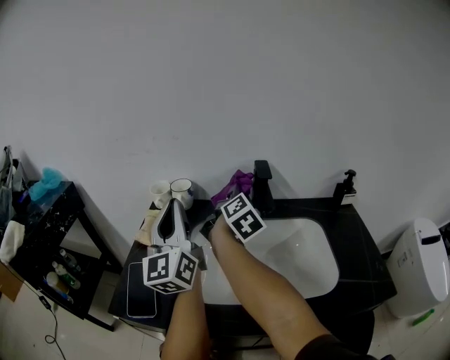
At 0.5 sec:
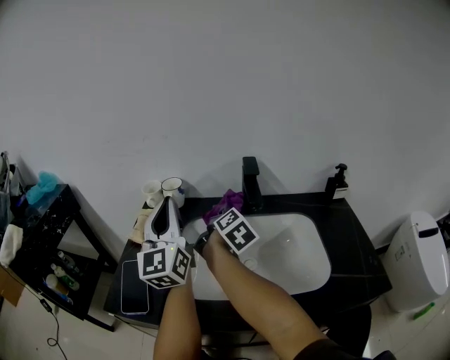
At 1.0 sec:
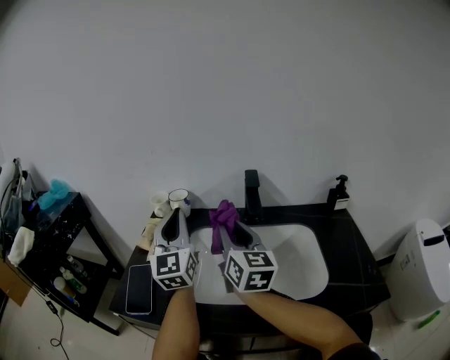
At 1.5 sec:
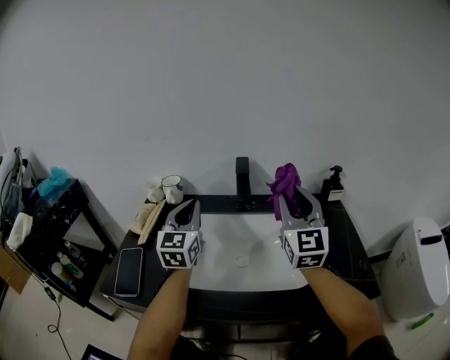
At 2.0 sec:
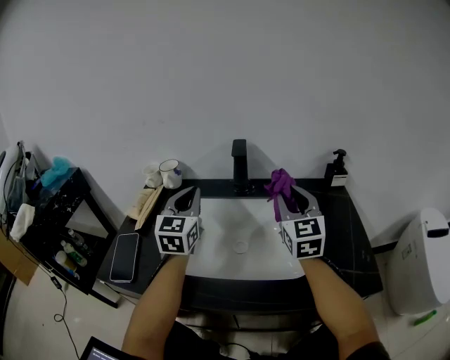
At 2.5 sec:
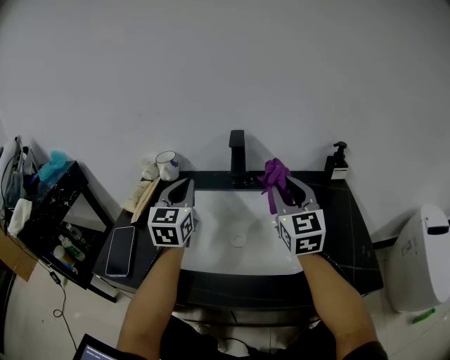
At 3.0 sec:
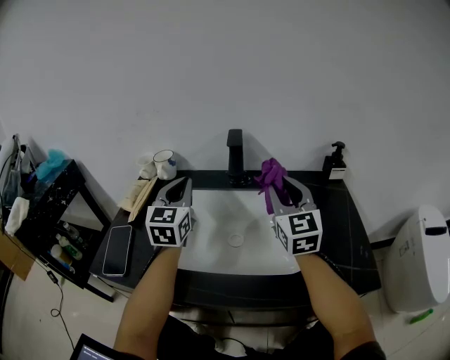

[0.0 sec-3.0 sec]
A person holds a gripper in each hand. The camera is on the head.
0.0 sec to 1.5 sec: The left gripper moves to the right and downward, some 10 cm, and changes its angle by roughly 30 degrees. Meanwhile the right gripper shifts about 20 cm to the right, backward and upward, and rolls counterclockwise, seen from behind, by some 60 degrees.
1.5 sec to 3.0 sec: The right gripper heads downward, covering some 5 cm.

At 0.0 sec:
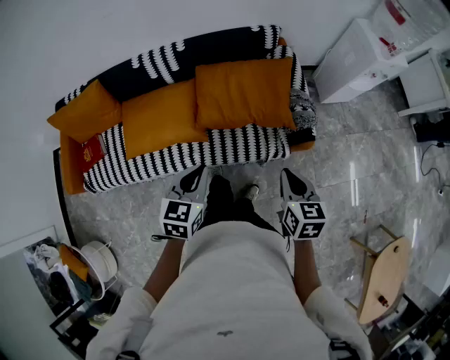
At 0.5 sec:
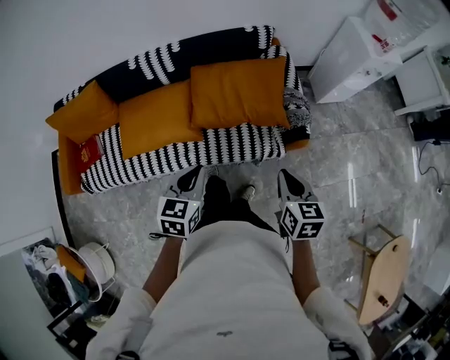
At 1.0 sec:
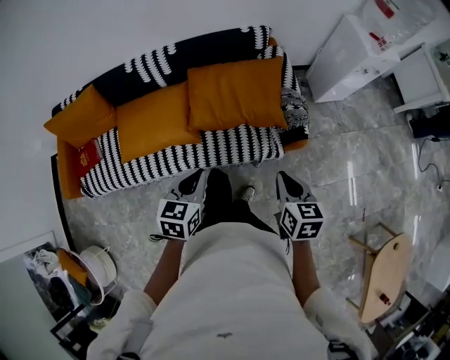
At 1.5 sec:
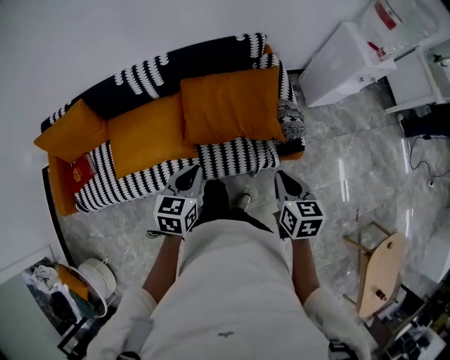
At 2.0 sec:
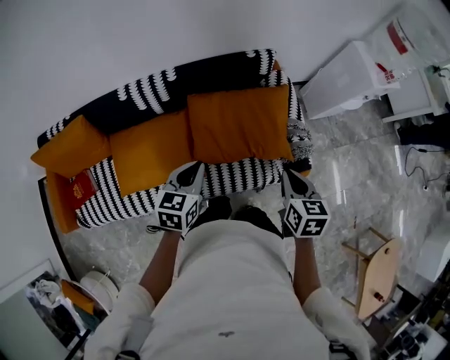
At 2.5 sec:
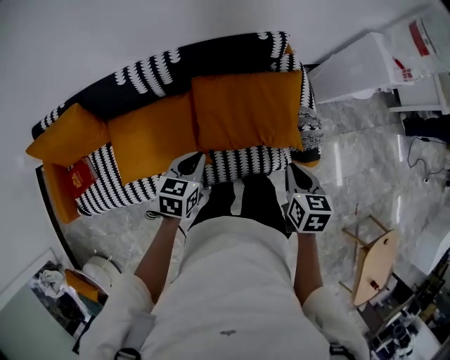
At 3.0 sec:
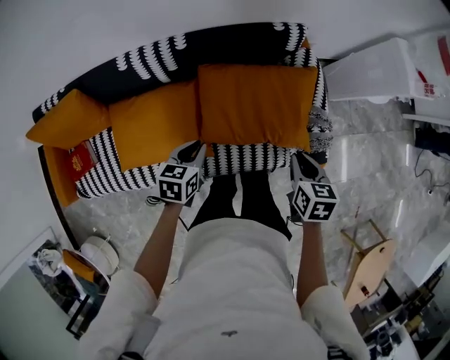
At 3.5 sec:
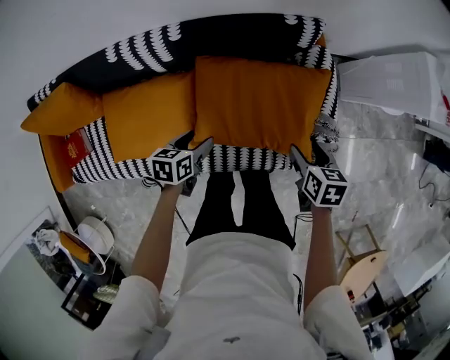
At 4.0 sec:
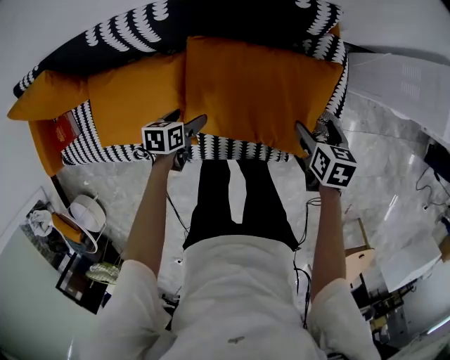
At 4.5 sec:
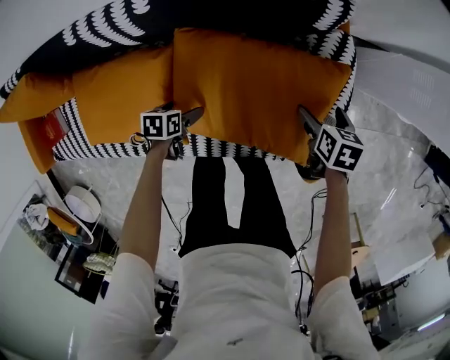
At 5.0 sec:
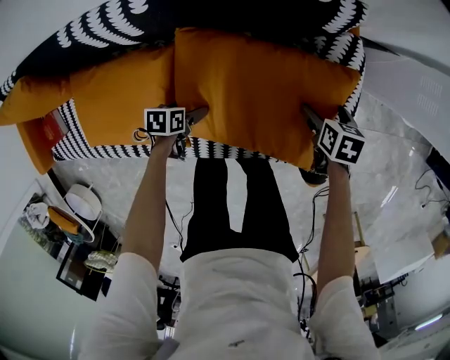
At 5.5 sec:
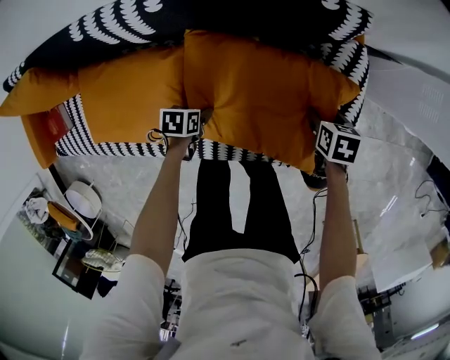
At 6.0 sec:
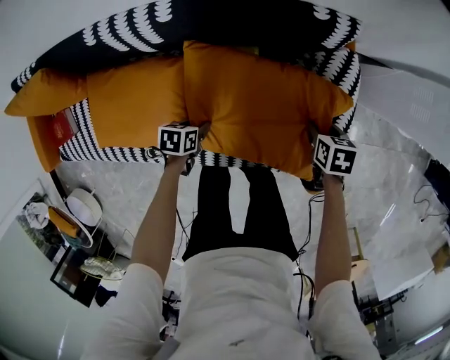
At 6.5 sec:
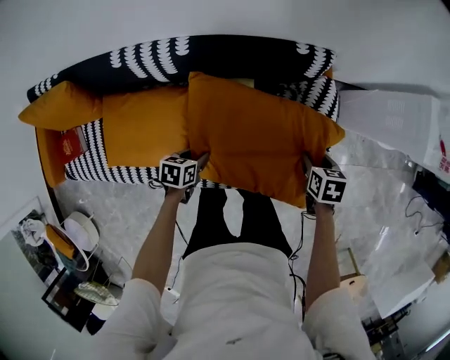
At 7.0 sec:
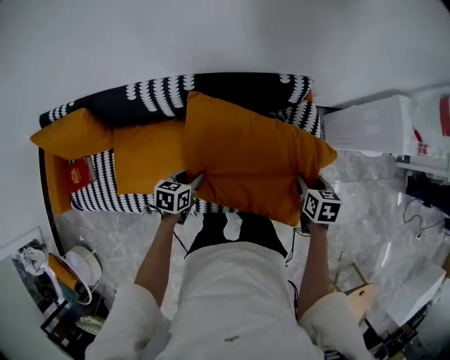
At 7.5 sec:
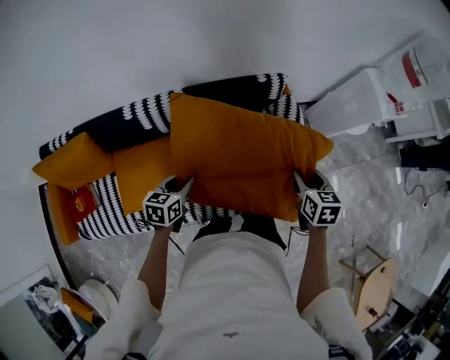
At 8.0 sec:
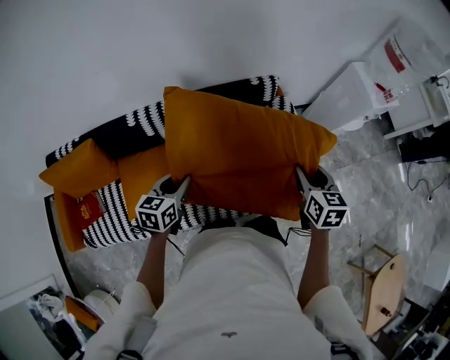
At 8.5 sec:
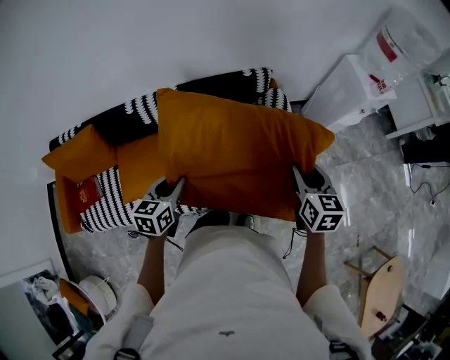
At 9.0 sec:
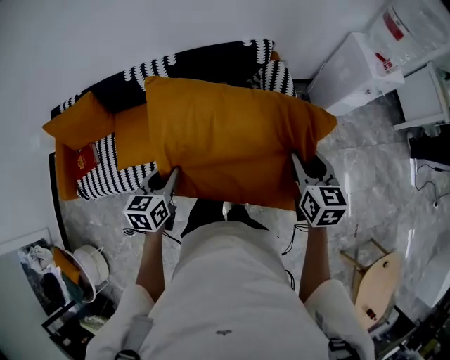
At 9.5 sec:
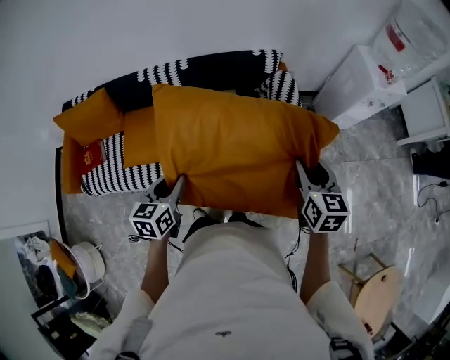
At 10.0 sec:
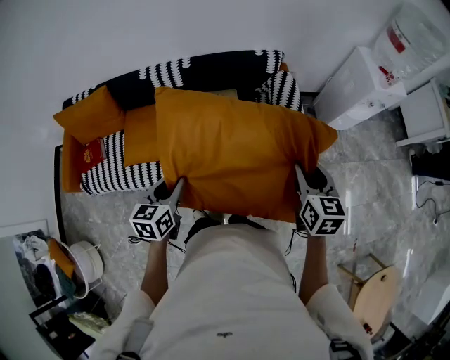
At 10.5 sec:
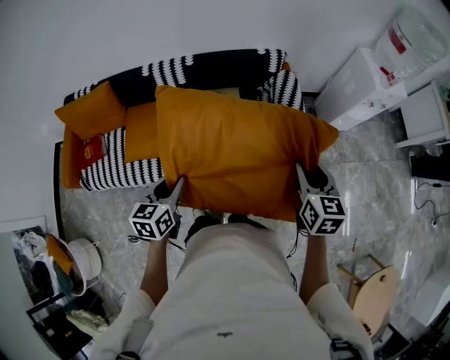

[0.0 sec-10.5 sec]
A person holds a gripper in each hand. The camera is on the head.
0.0 sec to 2.0 sec: The two grippers go some 15 cm forward.
2.0 sec to 4.0 sec: The left gripper goes roughly 30 cm downward, turns by approximately 40 degrees, and opens; the right gripper is displaced downward and forward by about 35 cm, rotates some 20 degrees, and opens its fingers.
4.0 sec to 6.5 sec: The left gripper moves some 10 cm downward and comes back, and closes up. Meanwhile the right gripper reaches about 10 cm downward, then returns, and closes up.
6.5 sec to 8.5 sec: The two grippers go some 30 cm upward and backward. The left gripper swivels roughly 40 degrees; the right gripper tilts its fingers approximately 40 degrees upward.
8.5 sec to 10.5 sec: The left gripper travels backward by about 15 cm. The right gripper goes roughly 10 cm backward.

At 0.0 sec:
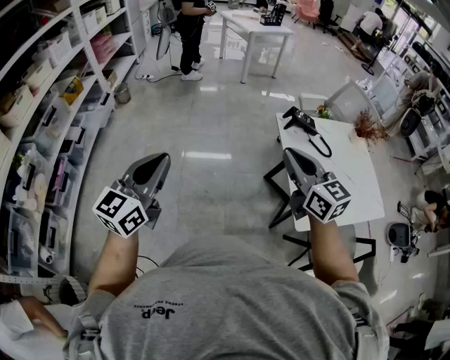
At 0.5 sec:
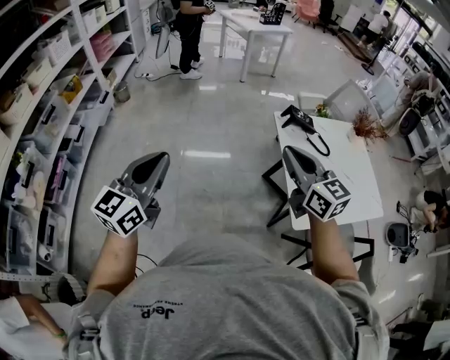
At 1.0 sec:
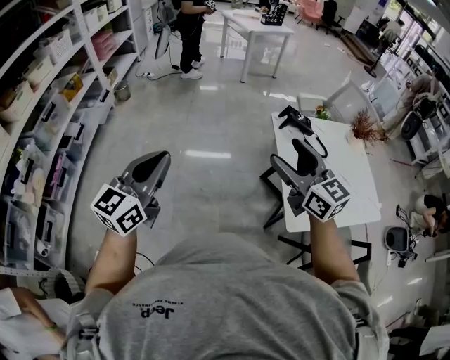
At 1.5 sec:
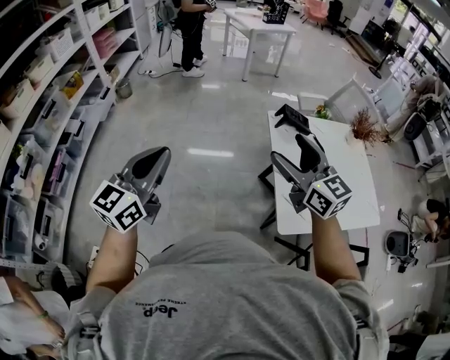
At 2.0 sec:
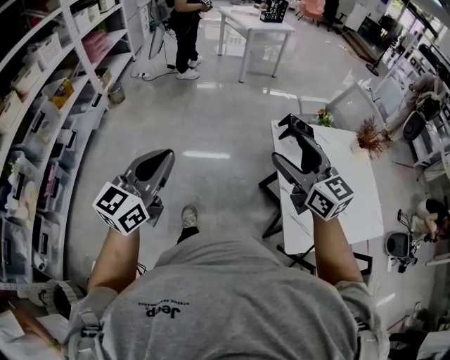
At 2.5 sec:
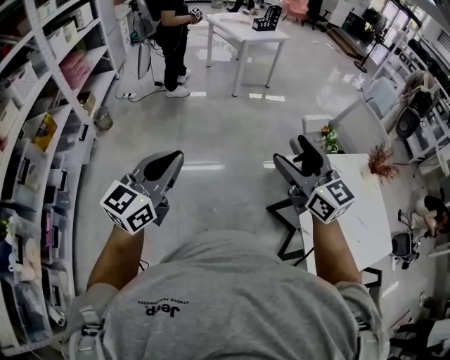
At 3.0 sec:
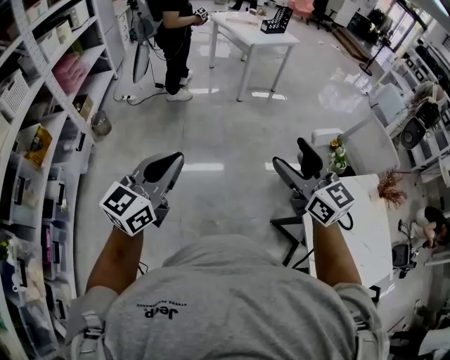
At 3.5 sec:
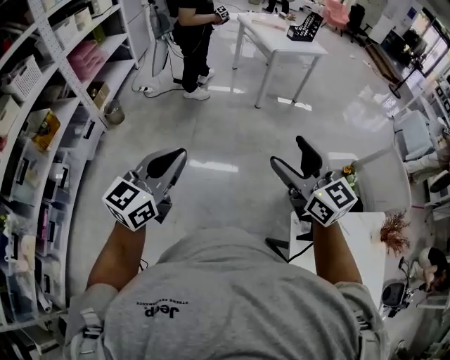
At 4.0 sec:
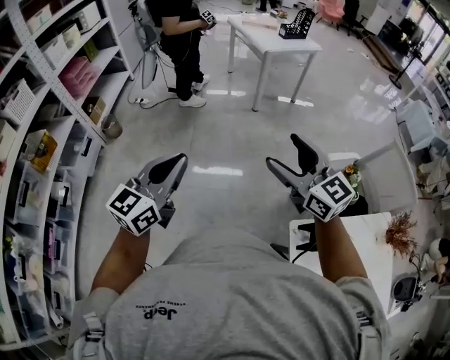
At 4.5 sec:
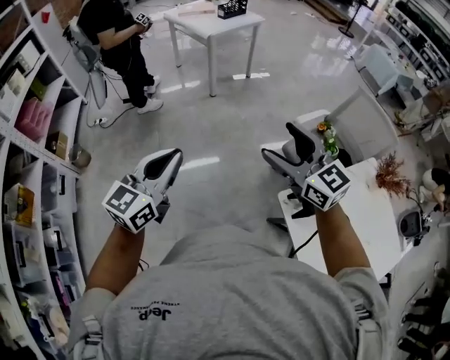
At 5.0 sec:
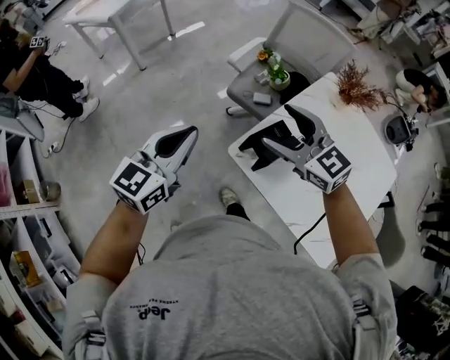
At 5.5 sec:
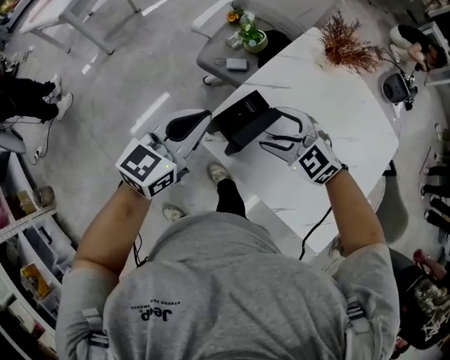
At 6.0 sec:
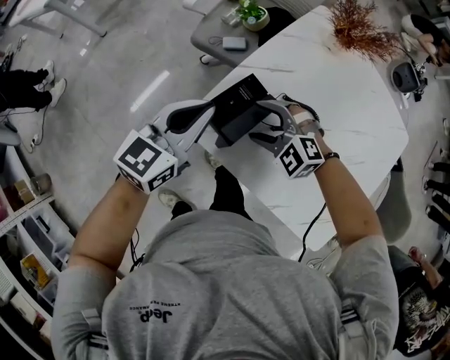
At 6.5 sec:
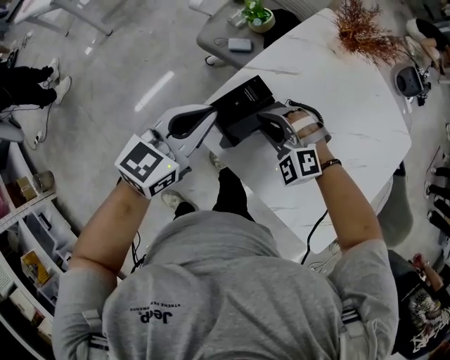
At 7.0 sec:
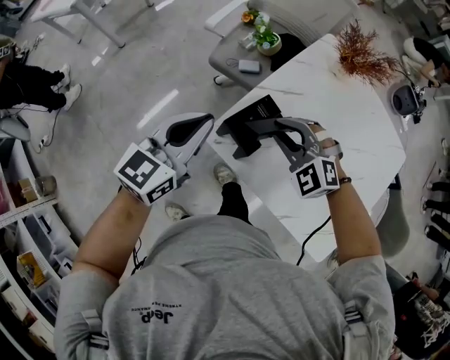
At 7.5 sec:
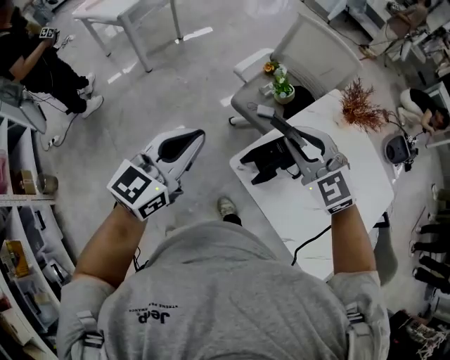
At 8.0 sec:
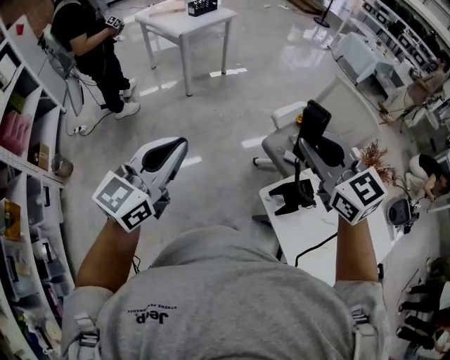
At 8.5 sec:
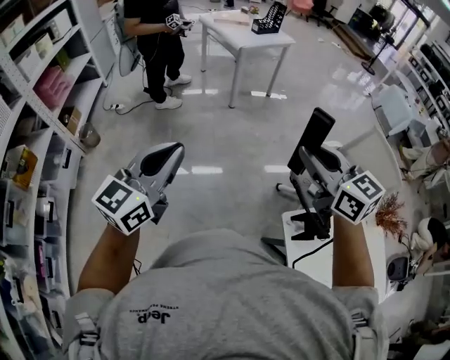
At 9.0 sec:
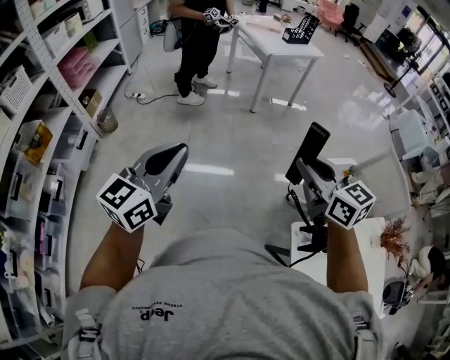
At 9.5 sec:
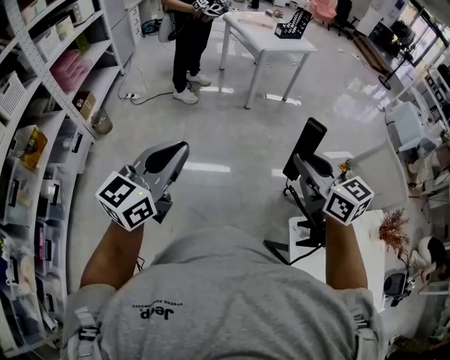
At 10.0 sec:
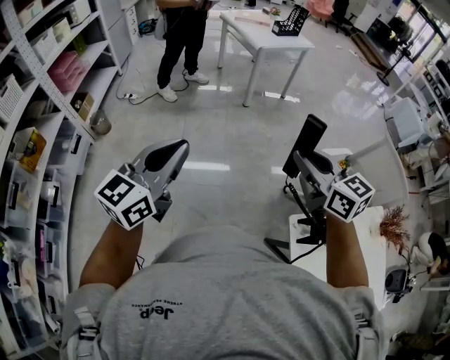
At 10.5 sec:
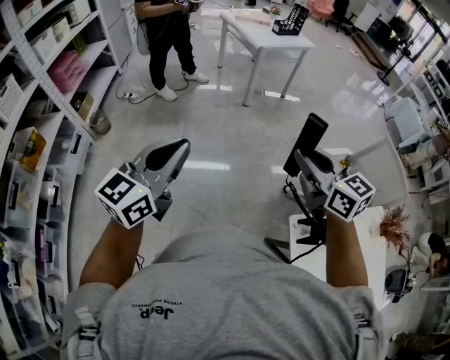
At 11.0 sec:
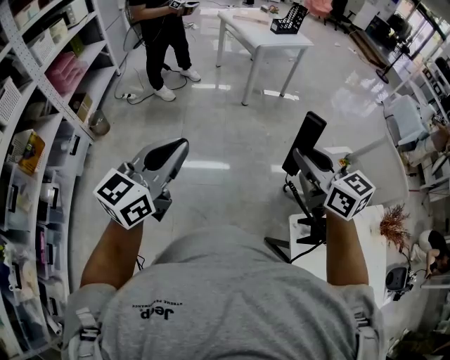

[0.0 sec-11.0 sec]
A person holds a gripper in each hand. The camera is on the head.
0.0 sec to 2.0 sec: The grippers both shift forward and to the right by some 15 cm. The right gripper opens its fingers.
2.0 sec to 3.5 sec: Both grippers are carried forward, about 50 cm.
3.5 sec to 5.5 sec: The left gripper moves roughly 50 cm, and swivels about 60 degrees, while the right gripper ends up approximately 50 cm from where it was, and tilts its fingers about 30 degrees downward.
5.5 sec to 7.5 sec: The right gripper travels upward and to the left by about 20 cm, and closes up. The left gripper moves to the left and upward, some 20 cm.
7.5 sec to 9.0 sec: The right gripper changes place by some 35 cm, and swivels roughly 40 degrees, while the left gripper ends up about 40 cm from where it was, and changes its angle by some 40 degrees.
9.0 sec to 11.0 sec: The grippers make only small movements.

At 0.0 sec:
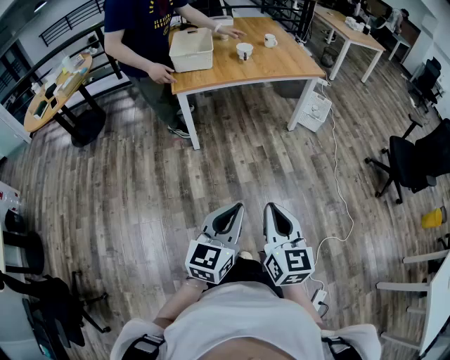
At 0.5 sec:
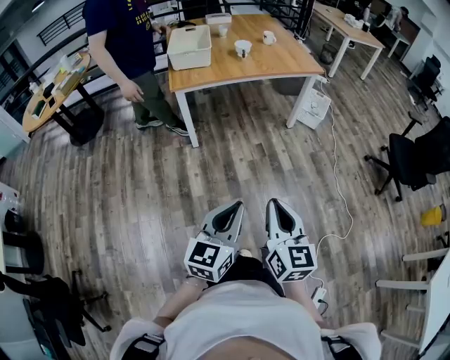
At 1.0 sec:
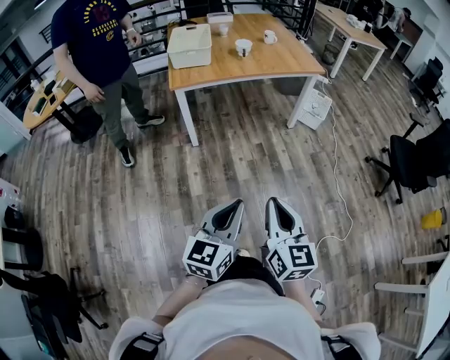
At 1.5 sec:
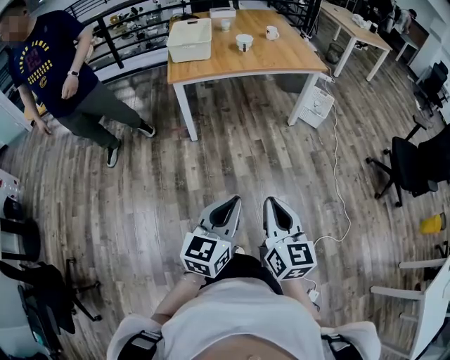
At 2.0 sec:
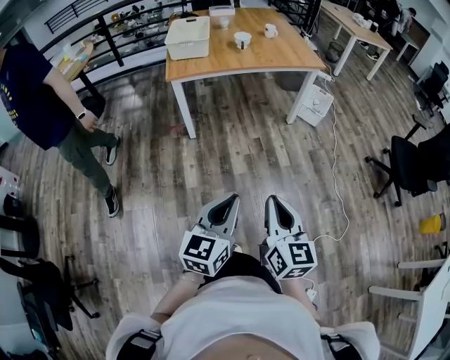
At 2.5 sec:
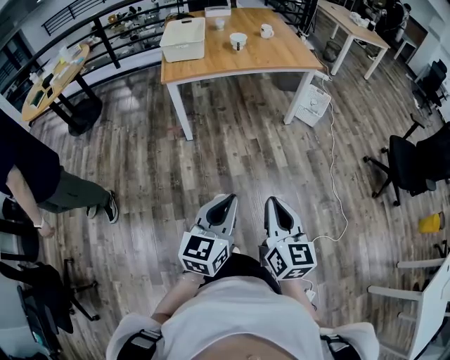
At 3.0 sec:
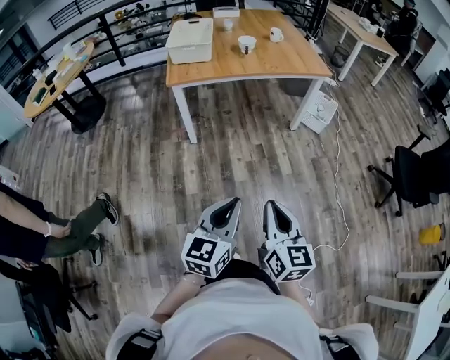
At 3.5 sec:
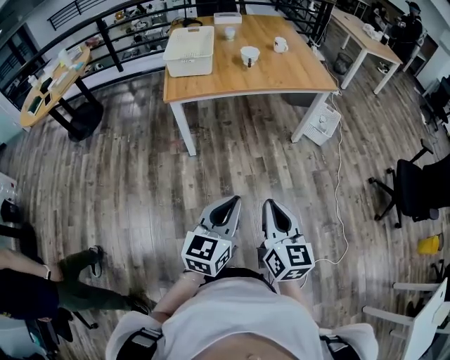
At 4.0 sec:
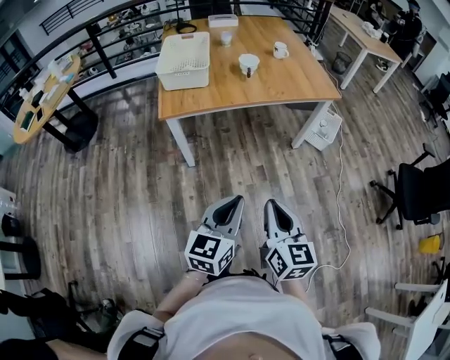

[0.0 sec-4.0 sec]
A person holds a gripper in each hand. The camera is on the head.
0.0 sec to 2.0 sec: The left gripper shifts by about 5 cm, while the right gripper goes some 5 cm to the right.
2.0 sec to 4.0 sec: Both grippers move forward, some 25 cm.
